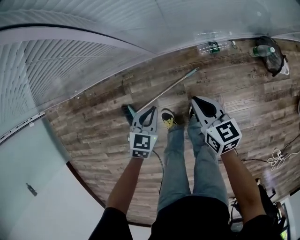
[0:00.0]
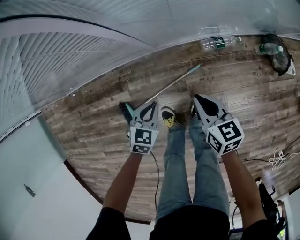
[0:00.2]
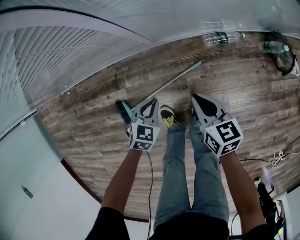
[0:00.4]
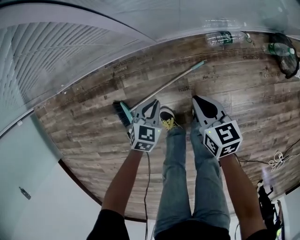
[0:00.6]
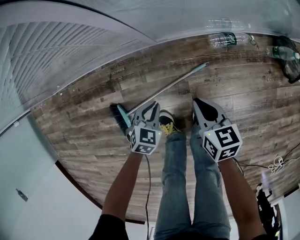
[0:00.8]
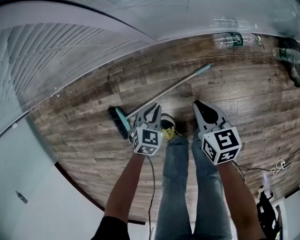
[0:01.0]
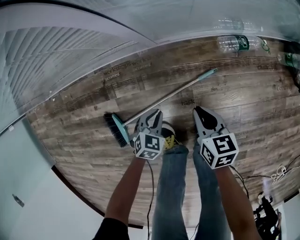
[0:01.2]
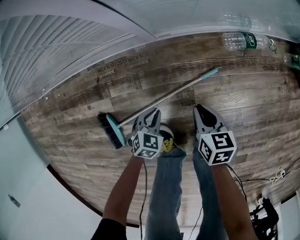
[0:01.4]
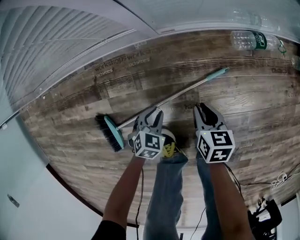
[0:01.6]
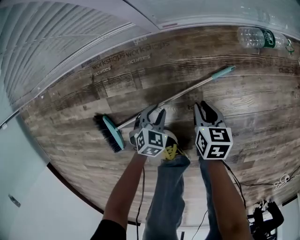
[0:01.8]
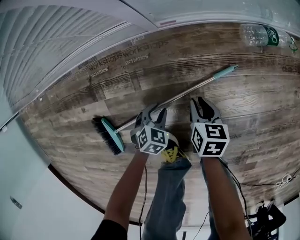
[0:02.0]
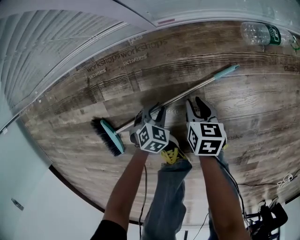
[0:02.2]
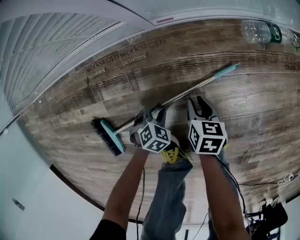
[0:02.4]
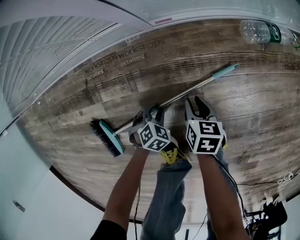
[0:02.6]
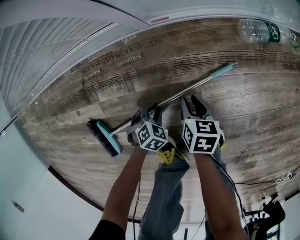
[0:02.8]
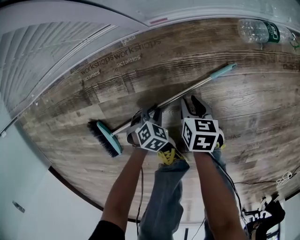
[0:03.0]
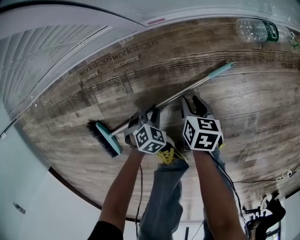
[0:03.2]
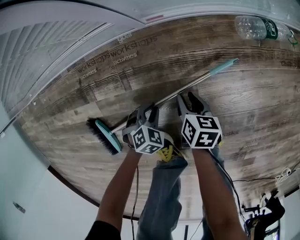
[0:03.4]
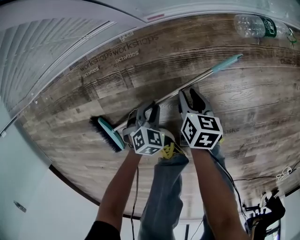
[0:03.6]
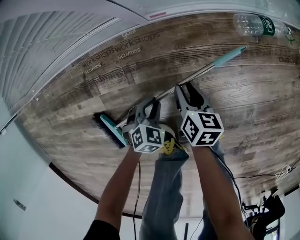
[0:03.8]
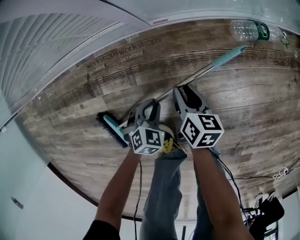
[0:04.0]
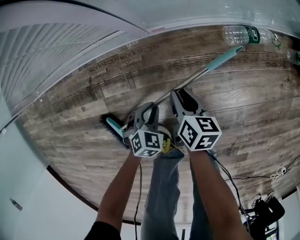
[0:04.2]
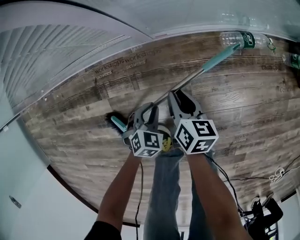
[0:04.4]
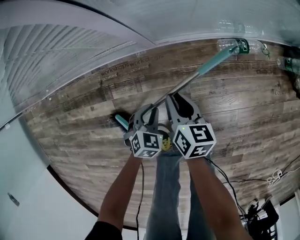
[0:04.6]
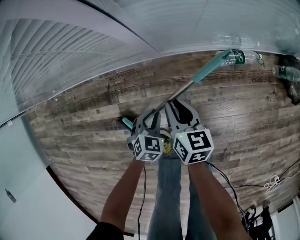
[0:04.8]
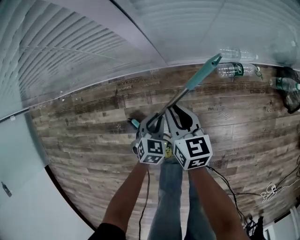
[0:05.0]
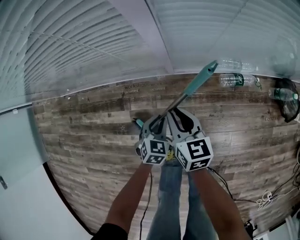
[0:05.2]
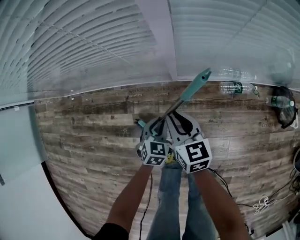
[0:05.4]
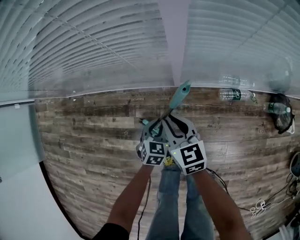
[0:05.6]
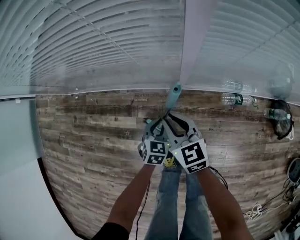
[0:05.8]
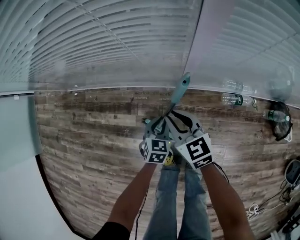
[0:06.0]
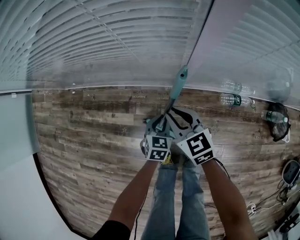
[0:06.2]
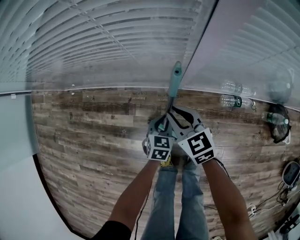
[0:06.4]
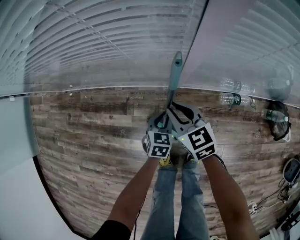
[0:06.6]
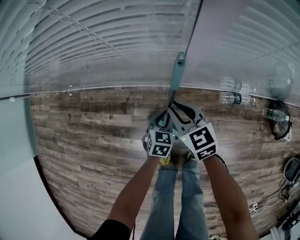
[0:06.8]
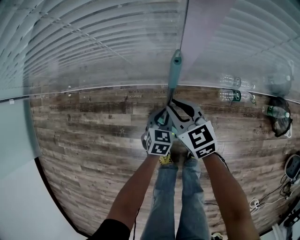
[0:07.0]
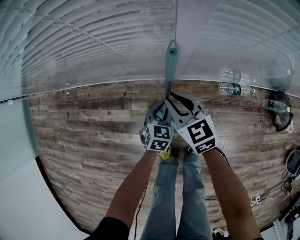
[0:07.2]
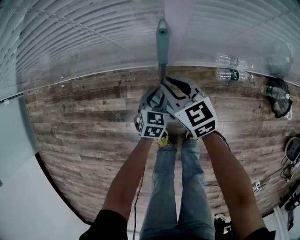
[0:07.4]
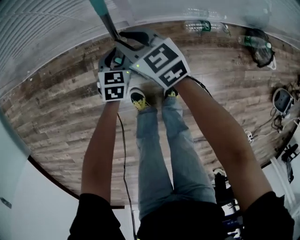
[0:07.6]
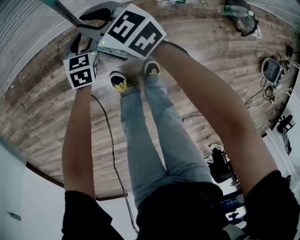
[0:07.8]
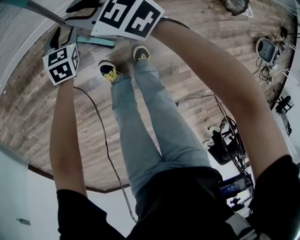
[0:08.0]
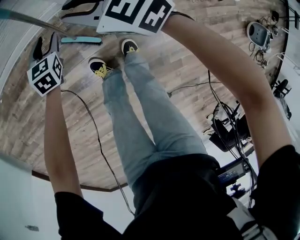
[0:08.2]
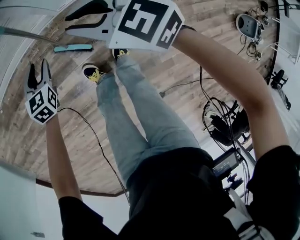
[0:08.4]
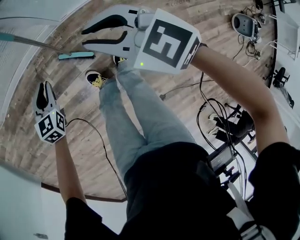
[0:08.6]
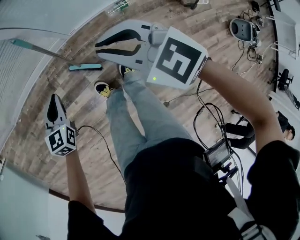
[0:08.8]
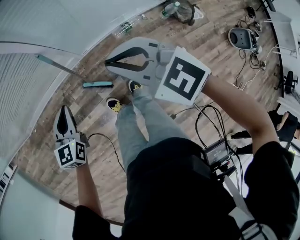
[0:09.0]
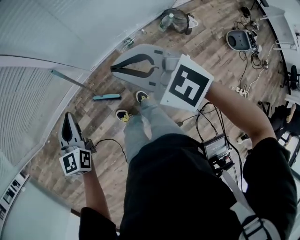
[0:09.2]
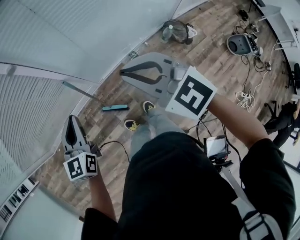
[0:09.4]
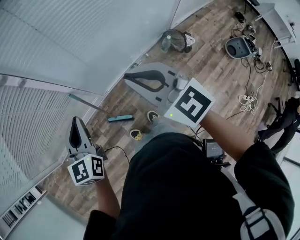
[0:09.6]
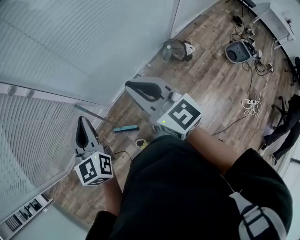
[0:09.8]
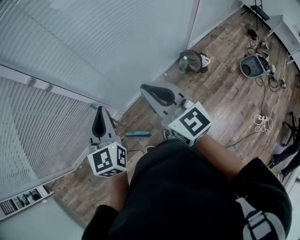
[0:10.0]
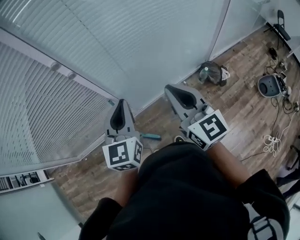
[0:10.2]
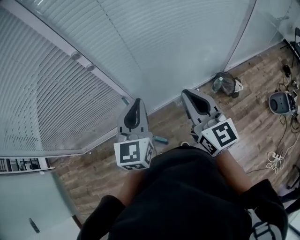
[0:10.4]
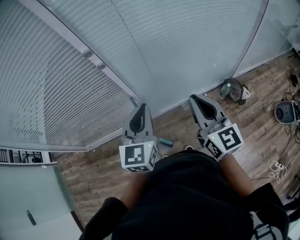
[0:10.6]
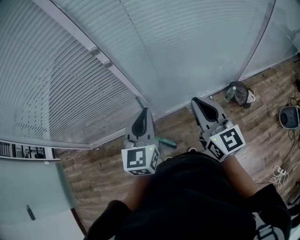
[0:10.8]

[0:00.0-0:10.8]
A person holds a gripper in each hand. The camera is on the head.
0:00.0 to 0:01.6: The grippers both shift downward by about 50 cm. The right gripper changes its angle by some 30 degrees.
0:01.6 to 0:03.0: Both grippers move downward, approximately 10 cm.
0:03.0 to 0:04.6: Both grippers travel together upward, some 25 cm. The left gripper changes its angle by about 20 degrees, while the right gripper turns by roughly 20 degrees.
0:04.6 to 0:06.2: The left gripper is displaced upward and forward by approximately 20 cm, and rotates about 30 degrees, while the right gripper is displaced upward and to the left by approximately 30 cm, and twists some 50 degrees counterclockwise, seen from behind.
0:06.2 to 0:07.8: The left gripper changes place by about 5 cm, and opens up.
0:07.8 to 0:09.2: The right gripper heads upward and backward, covering about 50 cm, and changes its angle by some 20 degrees. Meanwhile the left gripper shifts approximately 50 cm upward, swivels about 30 degrees, and closes up.
0:09.2 to 0:10.8: The left gripper is displaced upward and to the right by about 25 cm, while the right gripper goes some 15 cm upward and to the right, and swivels approximately 40 degrees.

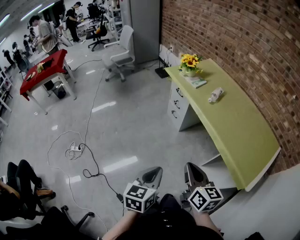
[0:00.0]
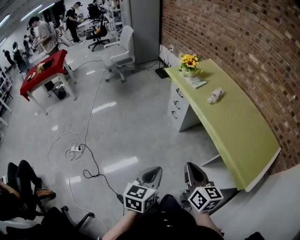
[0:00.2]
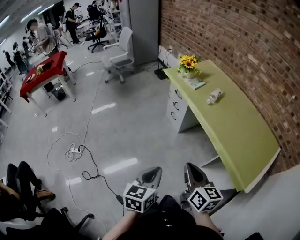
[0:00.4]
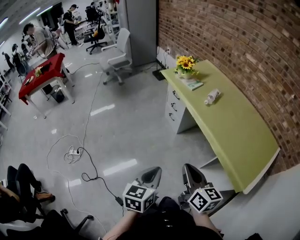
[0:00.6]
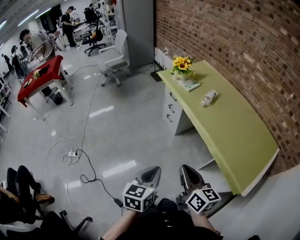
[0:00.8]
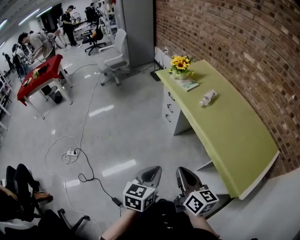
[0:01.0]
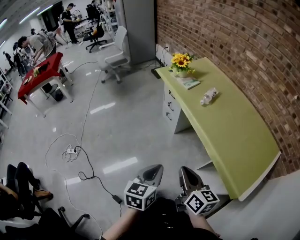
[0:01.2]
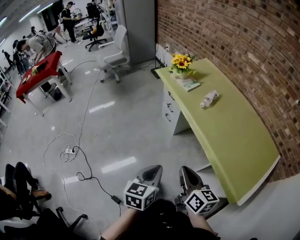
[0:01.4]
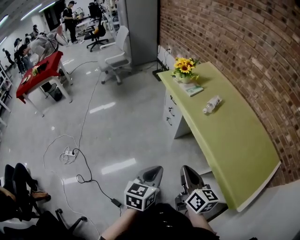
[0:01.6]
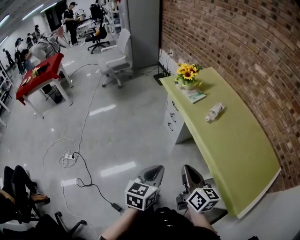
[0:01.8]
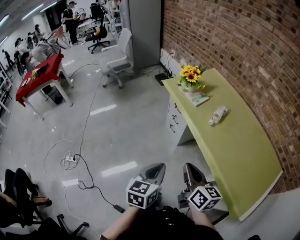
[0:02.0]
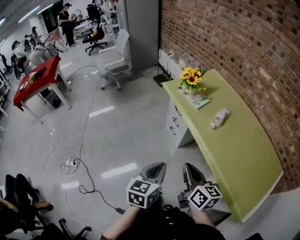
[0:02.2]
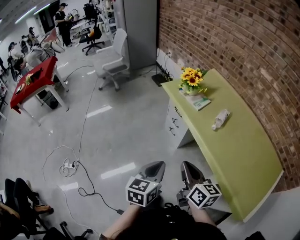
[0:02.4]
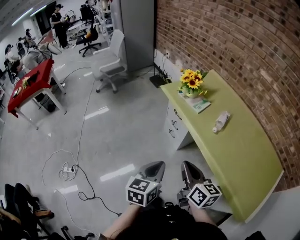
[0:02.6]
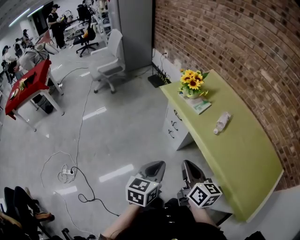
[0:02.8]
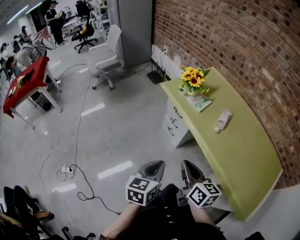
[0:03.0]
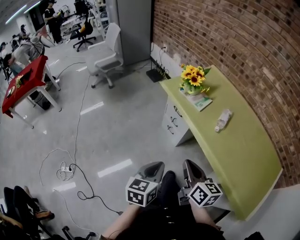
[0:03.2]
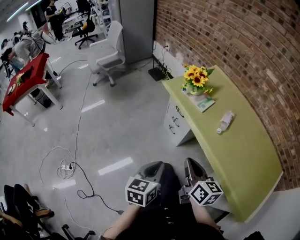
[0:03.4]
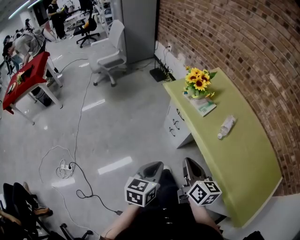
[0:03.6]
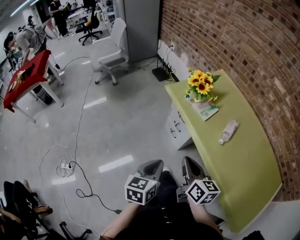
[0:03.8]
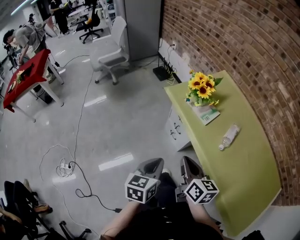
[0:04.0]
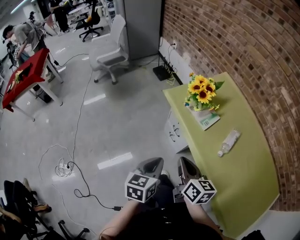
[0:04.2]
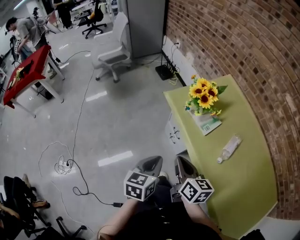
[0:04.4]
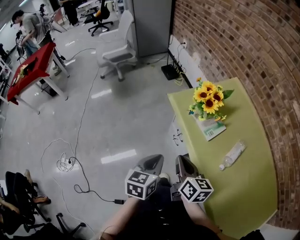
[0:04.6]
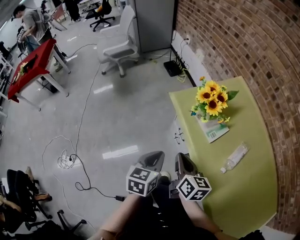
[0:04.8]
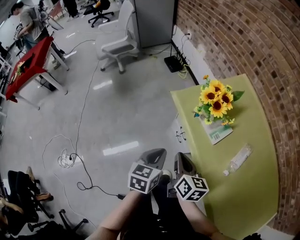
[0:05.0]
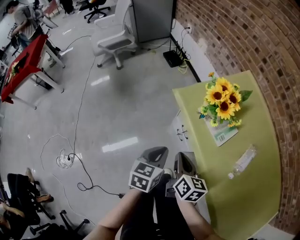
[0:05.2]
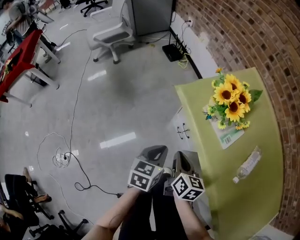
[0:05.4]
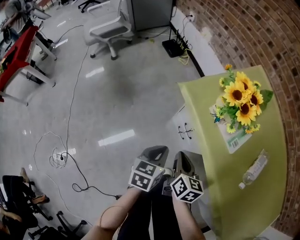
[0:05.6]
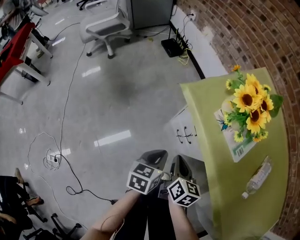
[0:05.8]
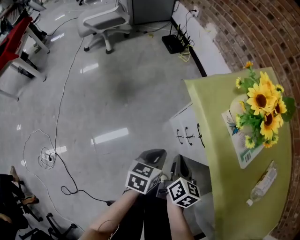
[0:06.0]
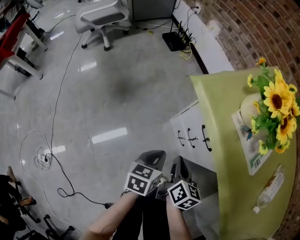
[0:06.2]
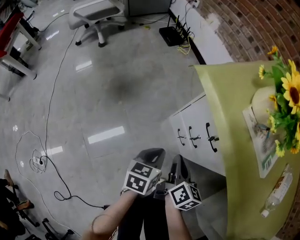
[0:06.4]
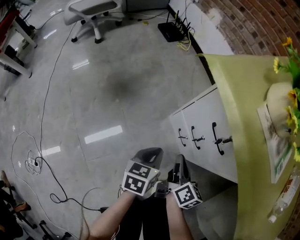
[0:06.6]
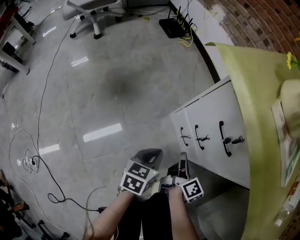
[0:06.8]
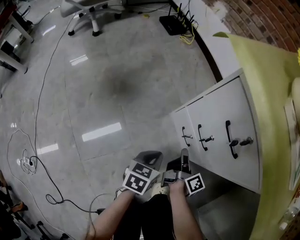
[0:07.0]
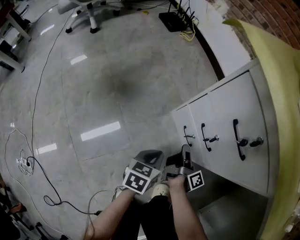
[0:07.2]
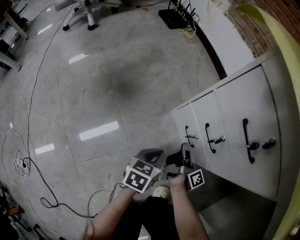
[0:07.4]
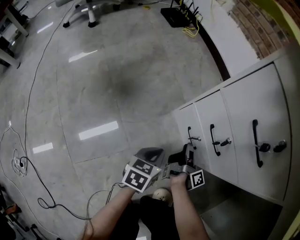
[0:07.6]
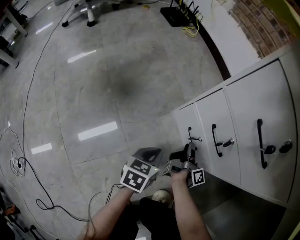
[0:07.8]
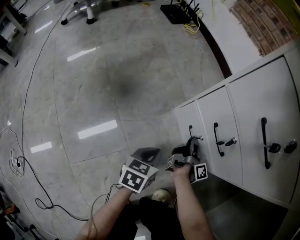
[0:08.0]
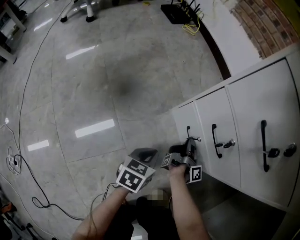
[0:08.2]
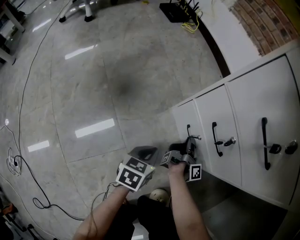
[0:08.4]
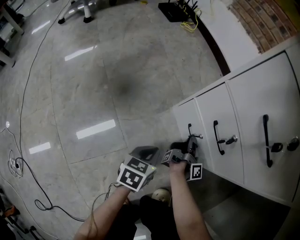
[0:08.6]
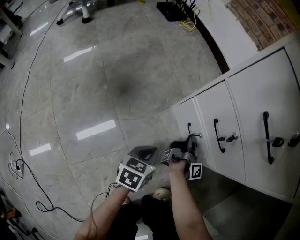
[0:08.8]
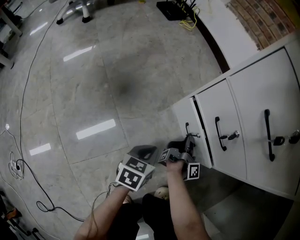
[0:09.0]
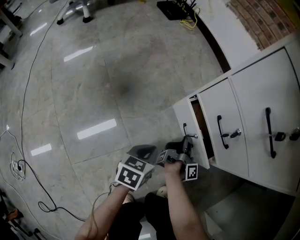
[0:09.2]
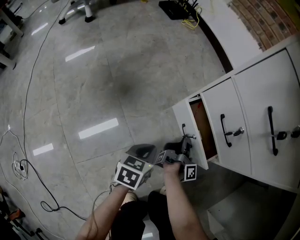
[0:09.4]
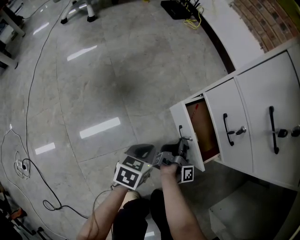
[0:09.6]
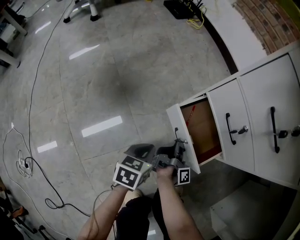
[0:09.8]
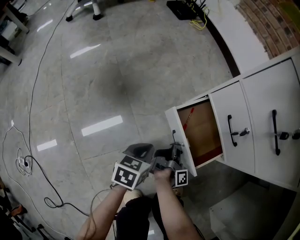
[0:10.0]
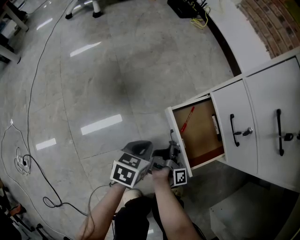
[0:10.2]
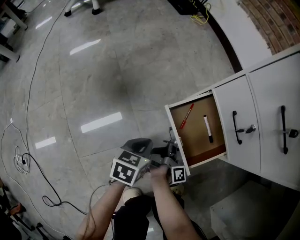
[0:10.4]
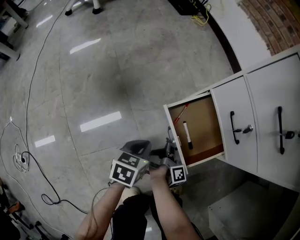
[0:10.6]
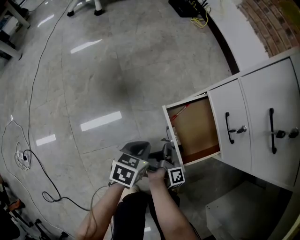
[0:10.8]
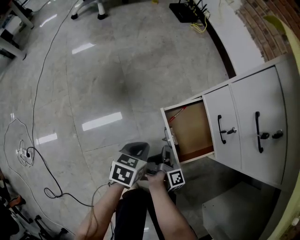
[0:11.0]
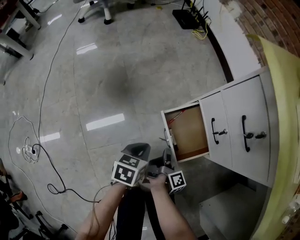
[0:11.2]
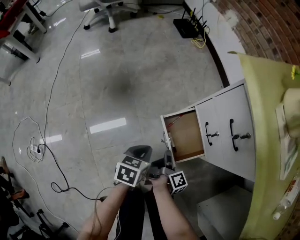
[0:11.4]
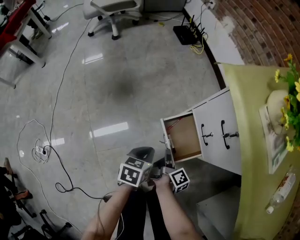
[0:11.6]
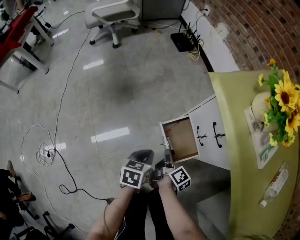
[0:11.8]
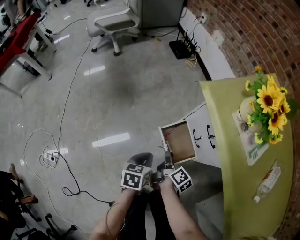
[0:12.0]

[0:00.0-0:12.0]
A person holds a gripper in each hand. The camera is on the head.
0:00.0 to 0:01.6: The two grippers go some 15 cm forward and to the right.
0:01.6 to 0:03.0: The two grippers go some 20 cm forward and to the left.
0:03.0 to 0:04.4: The grippers both shift forward by roughly 20 cm.
0:04.4 to 0:06.0: The two grippers go about 35 cm downward and forward. The right gripper turns by approximately 20 degrees.
0:06.0 to 0:07.6: Both grippers move downward, roughly 35 cm. The right gripper twists roughly 60 degrees clockwise, seen from behind, and opens up.
0:07.6 to 0:09.0: There are only small adjustments of the grippers.
0:09.0 to 0:10.4: The left gripper moves to the left and backward, about 10 cm; the right gripper heads backward and to the left, covering some 15 cm.
0:10.4 to 0:12.0: Both grippers move upward, roughly 35 cm. The right gripper swivels approximately 50 degrees.

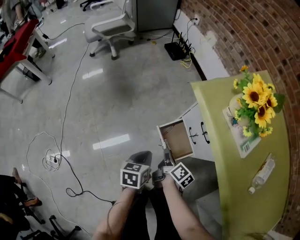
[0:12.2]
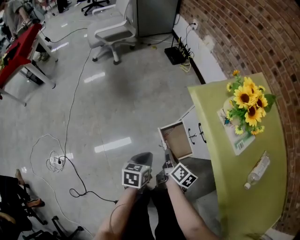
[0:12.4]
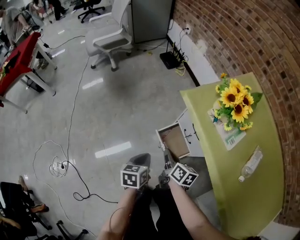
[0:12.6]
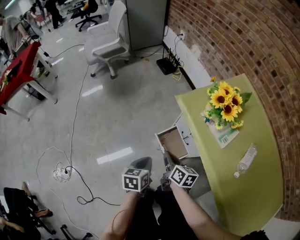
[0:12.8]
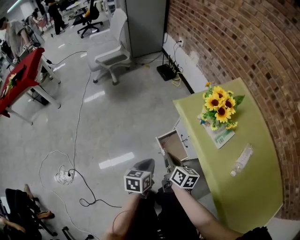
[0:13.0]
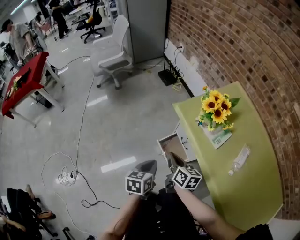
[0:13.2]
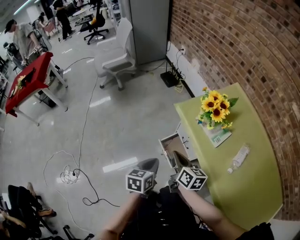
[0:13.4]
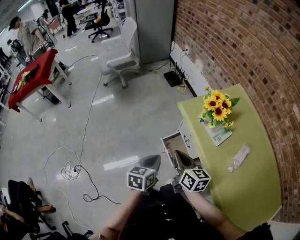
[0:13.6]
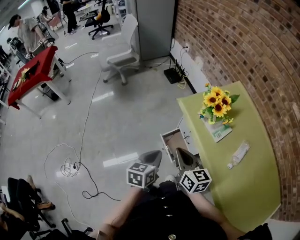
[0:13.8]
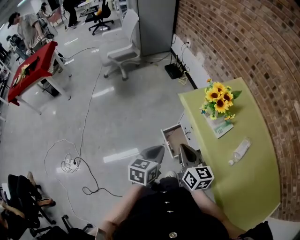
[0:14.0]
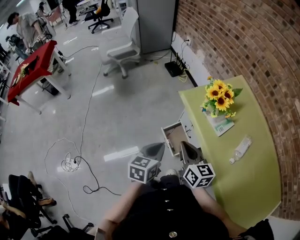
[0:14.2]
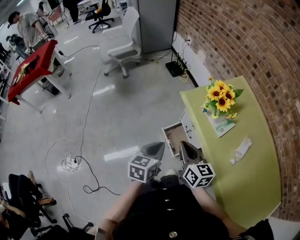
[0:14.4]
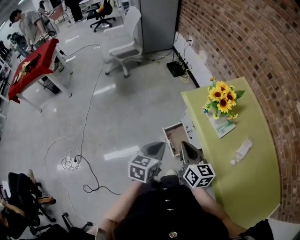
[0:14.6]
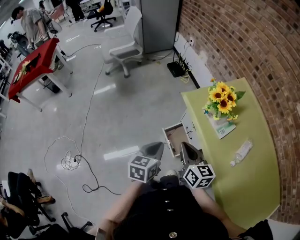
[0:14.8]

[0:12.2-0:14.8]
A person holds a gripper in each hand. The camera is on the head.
0:12.2 to 0:13.4: Both grippers travel together upward, about 25 cm. The right gripper swivels approximately 30 degrees.
0:13.4 to 0:14.8: The grippers stay close to where they were, moving slightly.
